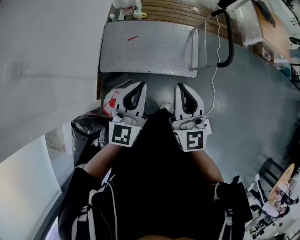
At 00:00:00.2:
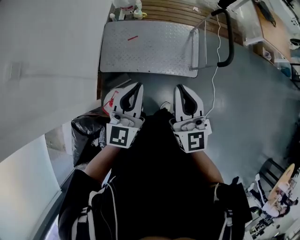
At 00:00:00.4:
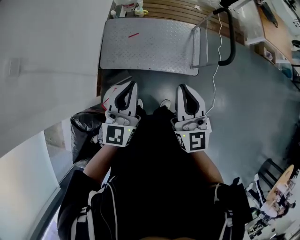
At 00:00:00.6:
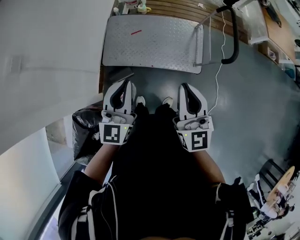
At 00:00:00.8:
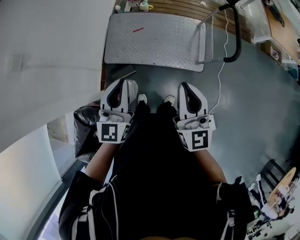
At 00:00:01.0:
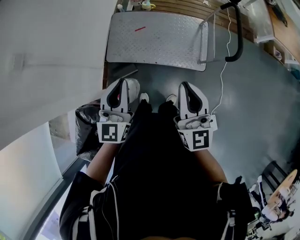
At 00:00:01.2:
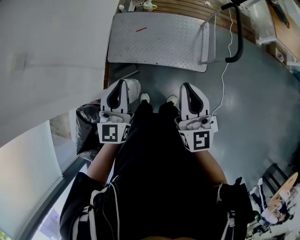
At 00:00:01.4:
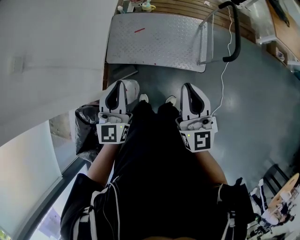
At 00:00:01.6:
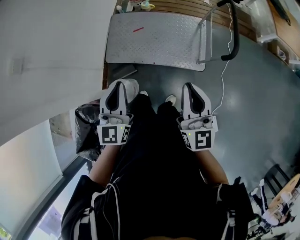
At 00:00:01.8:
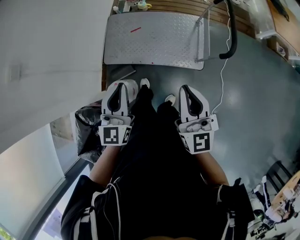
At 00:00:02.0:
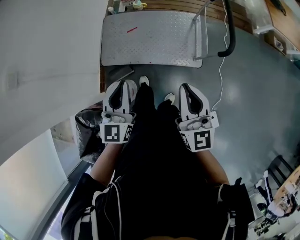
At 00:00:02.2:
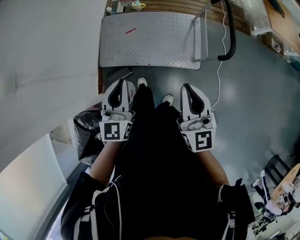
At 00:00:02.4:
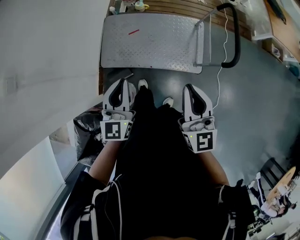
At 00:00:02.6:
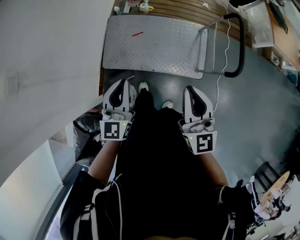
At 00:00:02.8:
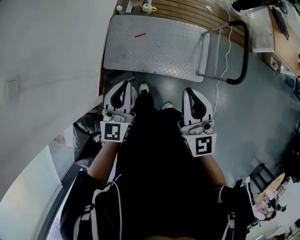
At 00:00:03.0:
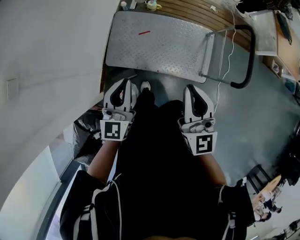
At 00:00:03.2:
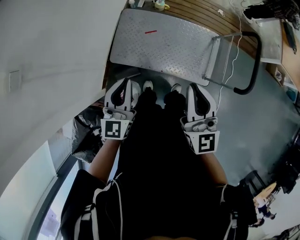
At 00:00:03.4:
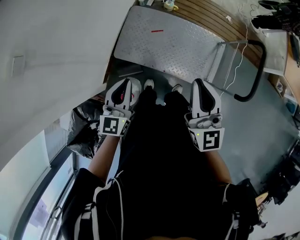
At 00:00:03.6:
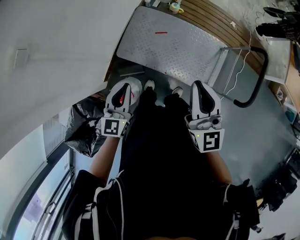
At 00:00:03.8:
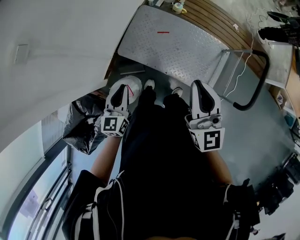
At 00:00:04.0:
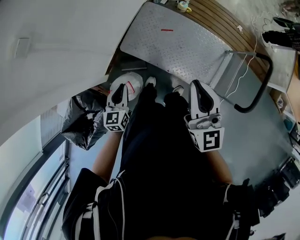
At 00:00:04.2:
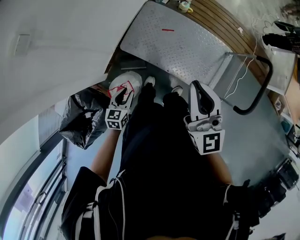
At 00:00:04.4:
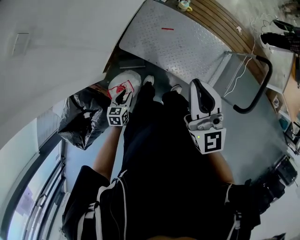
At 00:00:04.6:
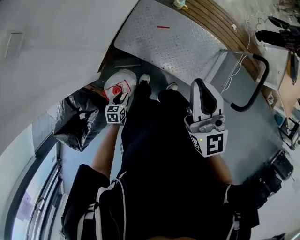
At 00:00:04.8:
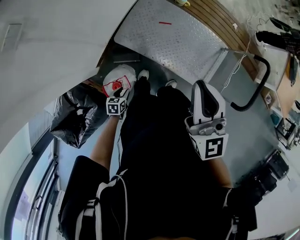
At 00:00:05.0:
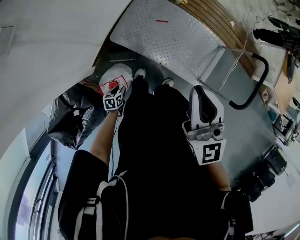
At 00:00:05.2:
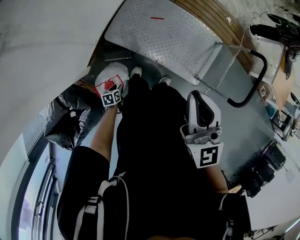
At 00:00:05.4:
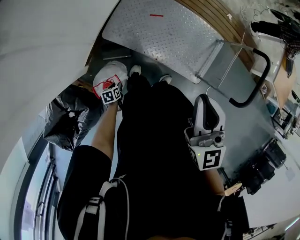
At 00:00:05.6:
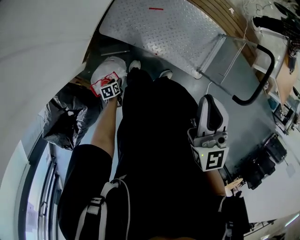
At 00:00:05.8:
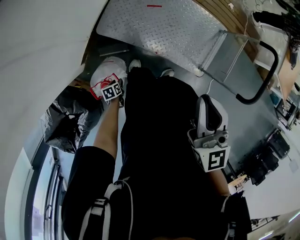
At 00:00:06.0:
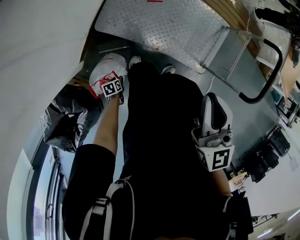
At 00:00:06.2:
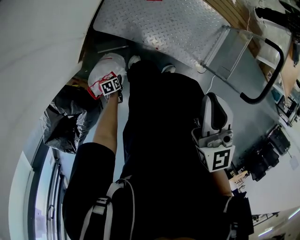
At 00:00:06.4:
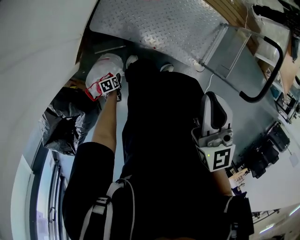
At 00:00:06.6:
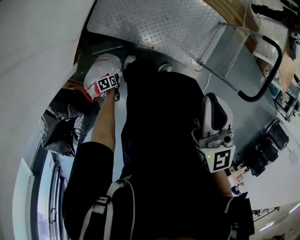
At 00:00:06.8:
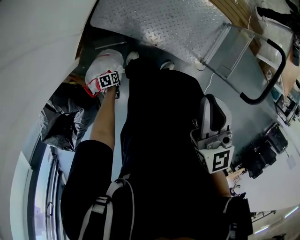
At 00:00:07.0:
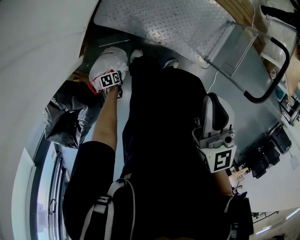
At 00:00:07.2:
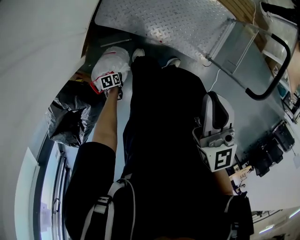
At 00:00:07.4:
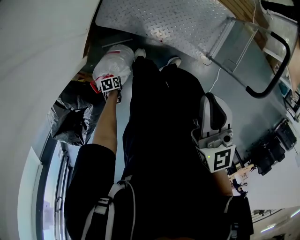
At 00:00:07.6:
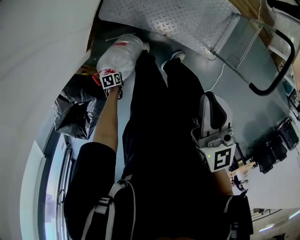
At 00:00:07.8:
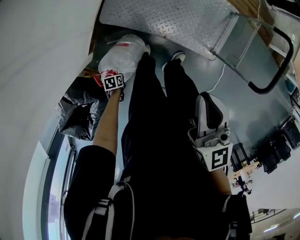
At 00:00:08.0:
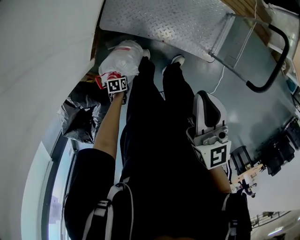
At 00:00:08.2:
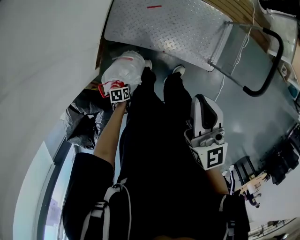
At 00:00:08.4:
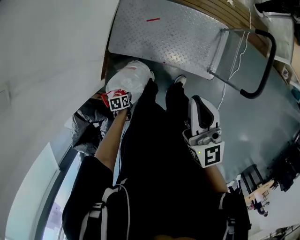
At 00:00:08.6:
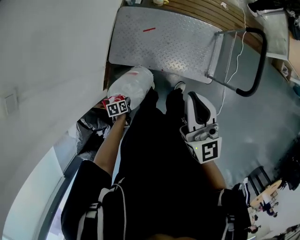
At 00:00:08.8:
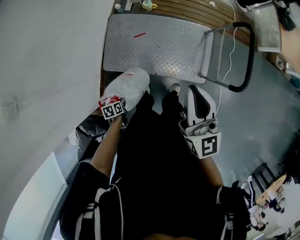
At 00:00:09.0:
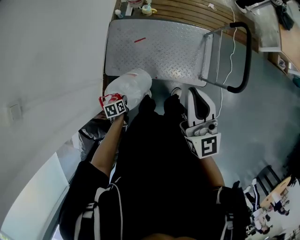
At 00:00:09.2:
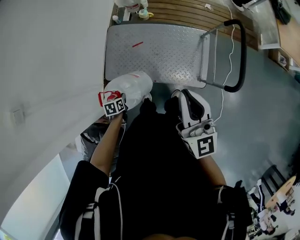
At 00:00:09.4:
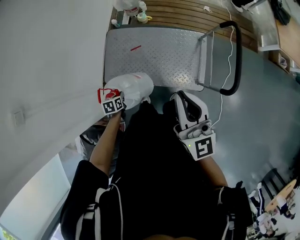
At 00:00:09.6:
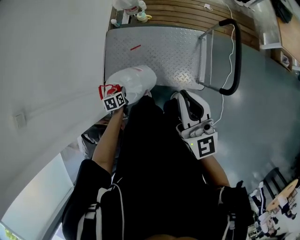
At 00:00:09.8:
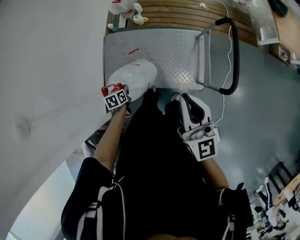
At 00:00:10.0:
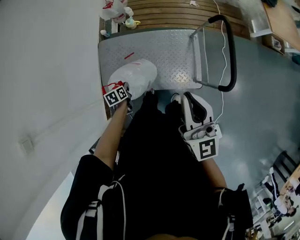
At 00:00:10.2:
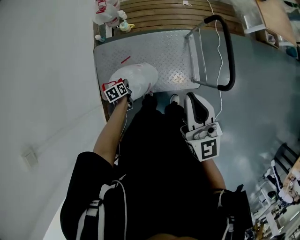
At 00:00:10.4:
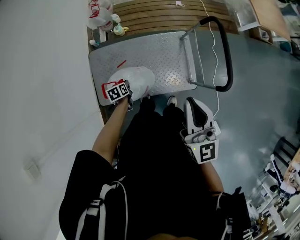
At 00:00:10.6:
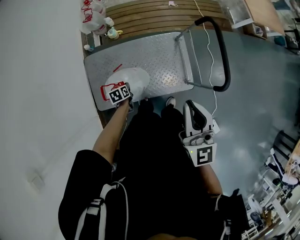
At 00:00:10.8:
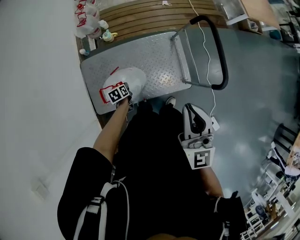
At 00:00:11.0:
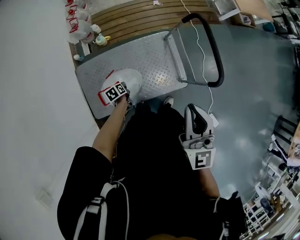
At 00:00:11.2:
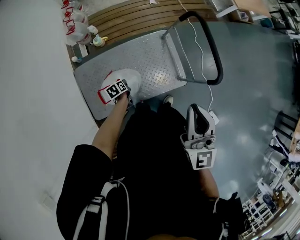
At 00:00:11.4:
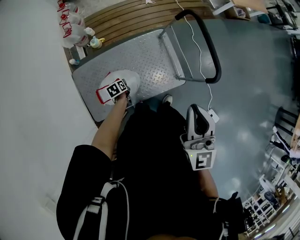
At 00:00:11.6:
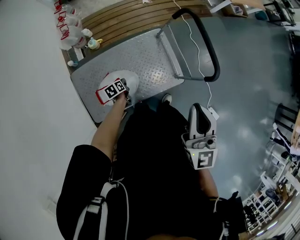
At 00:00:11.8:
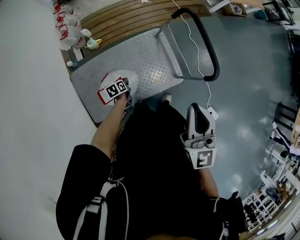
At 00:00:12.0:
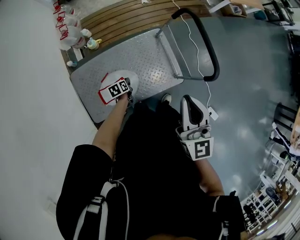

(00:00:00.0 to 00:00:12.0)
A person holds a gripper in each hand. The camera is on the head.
00:00:00.0 - 00:00:01.6: The right gripper goes approximately 10 cm to the right.
00:00:01.6 - 00:00:03.0: The grippers both shift forward and to the left by approximately 20 cm.
00:00:03.0 - 00:00:04.4: The right gripper heads to the left and forward, covering approximately 10 cm, and turns by roughly 20 degrees, while the left gripper shifts roughly 30 cm downward and backward, tips its fingers downward by approximately 40 degrees, and opens.
00:00:04.4 - 00:00:06.0: The right gripper travels downward by roughly 10 cm. The left gripper is displaced downward by roughly 30 cm, and rotates roughly 40 degrees.
00:00:06.0 - 00:00:07.6: The left gripper moves some 5 cm, and closes its fingers.
00:00:07.6 - 00:00:09.0: The right gripper moves to the right, upward and forward, about 20 cm, and turns by some 30 degrees. Meanwhile the left gripper heads upward and forward, covering roughly 30 cm, and turns by some 20 degrees.
00:00:09.0 - 00:00:10.4: The right gripper travels forward and to the right by approximately 10 cm; the left gripper is displaced forward by about 30 cm.
00:00:10.4 - 00:00:12.0: The left gripper moves forward, to the right and downward, approximately 15 cm.

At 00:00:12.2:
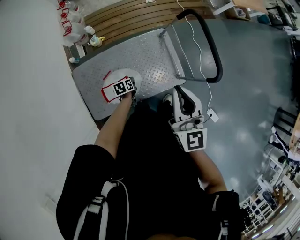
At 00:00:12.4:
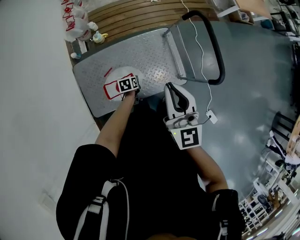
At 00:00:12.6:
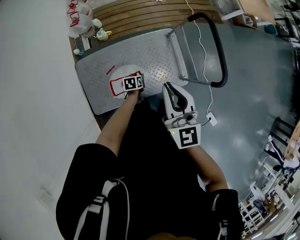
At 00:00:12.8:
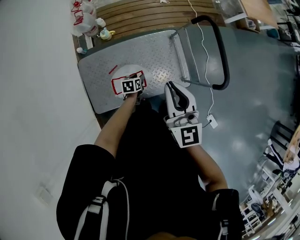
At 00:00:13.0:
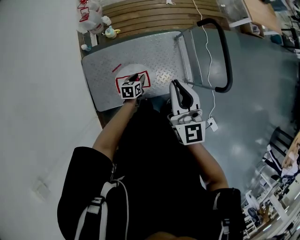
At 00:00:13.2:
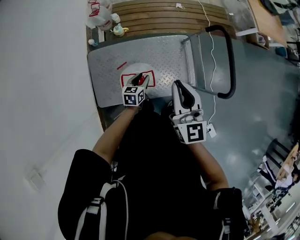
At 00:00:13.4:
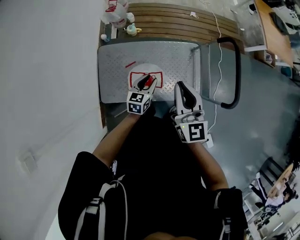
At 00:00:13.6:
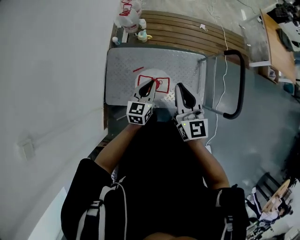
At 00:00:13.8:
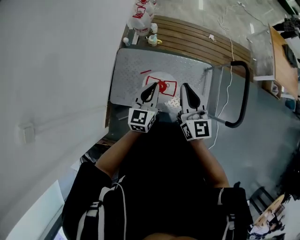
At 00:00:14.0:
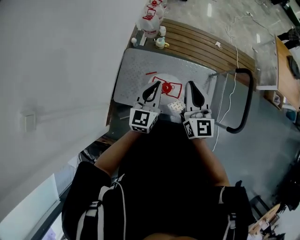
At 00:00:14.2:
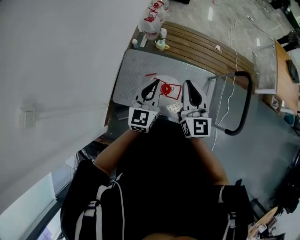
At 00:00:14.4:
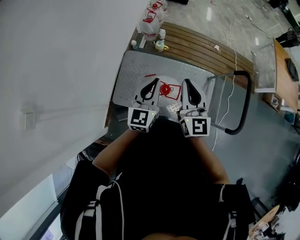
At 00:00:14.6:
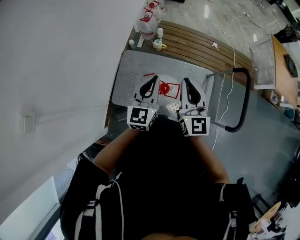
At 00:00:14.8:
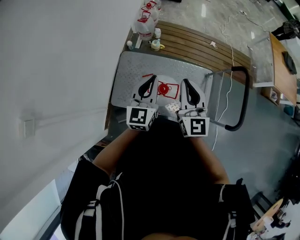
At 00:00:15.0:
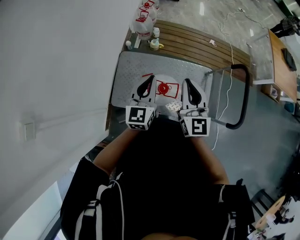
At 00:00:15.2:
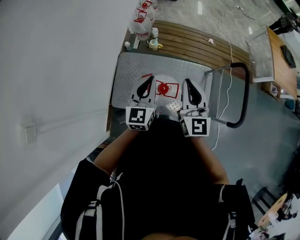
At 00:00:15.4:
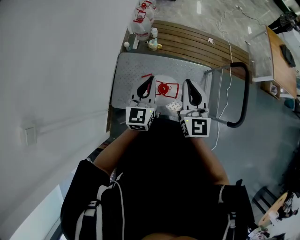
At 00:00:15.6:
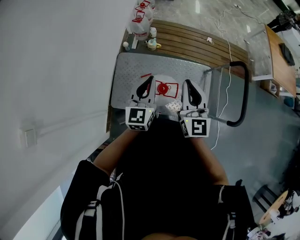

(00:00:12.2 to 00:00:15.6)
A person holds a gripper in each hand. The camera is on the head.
00:00:12.2 - 00:00:13.8: The right gripper changes place by about 15 cm, and changes its angle by roughly 30 degrees; the left gripper moves upward, some 35 cm, angles its fingers upward, by about 40 degrees, and opens, then closes once more.
00:00:13.8 - 00:00:15.6: The left gripper shifts by some 5 cm.

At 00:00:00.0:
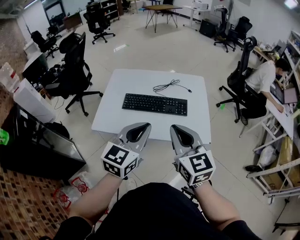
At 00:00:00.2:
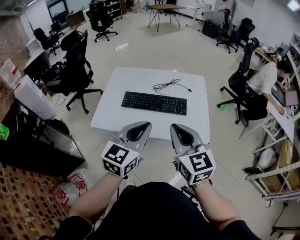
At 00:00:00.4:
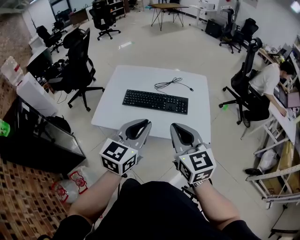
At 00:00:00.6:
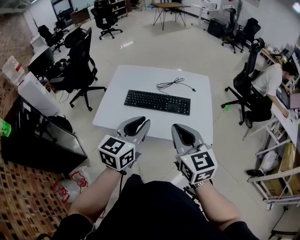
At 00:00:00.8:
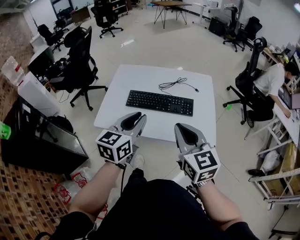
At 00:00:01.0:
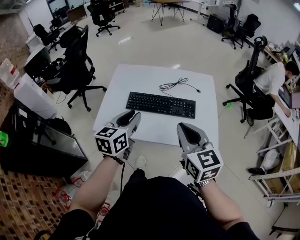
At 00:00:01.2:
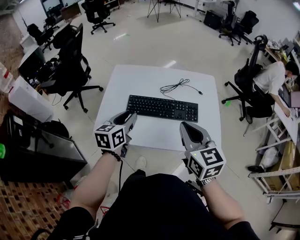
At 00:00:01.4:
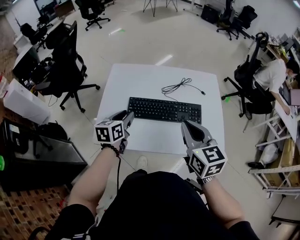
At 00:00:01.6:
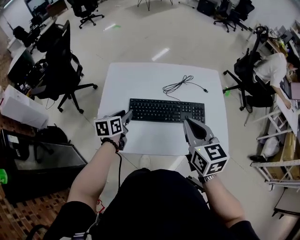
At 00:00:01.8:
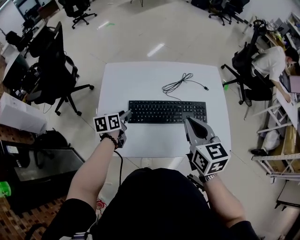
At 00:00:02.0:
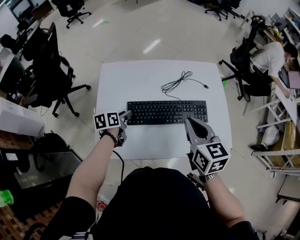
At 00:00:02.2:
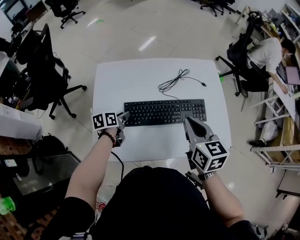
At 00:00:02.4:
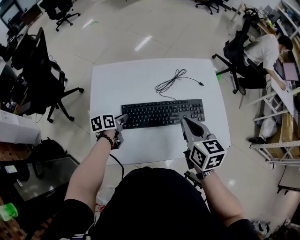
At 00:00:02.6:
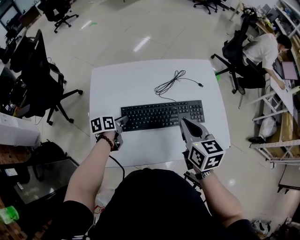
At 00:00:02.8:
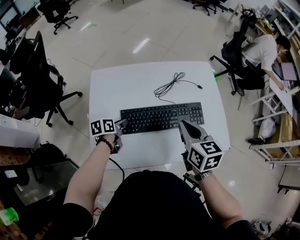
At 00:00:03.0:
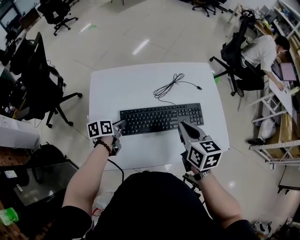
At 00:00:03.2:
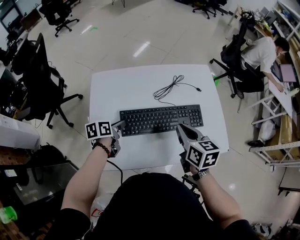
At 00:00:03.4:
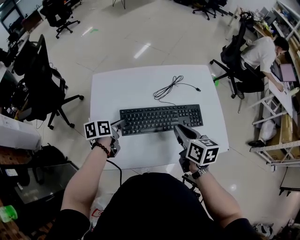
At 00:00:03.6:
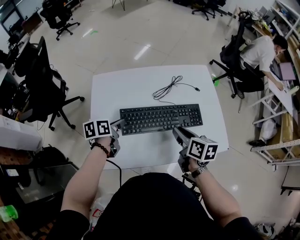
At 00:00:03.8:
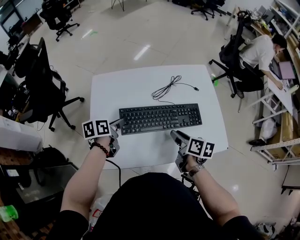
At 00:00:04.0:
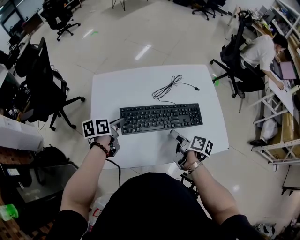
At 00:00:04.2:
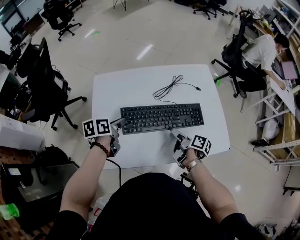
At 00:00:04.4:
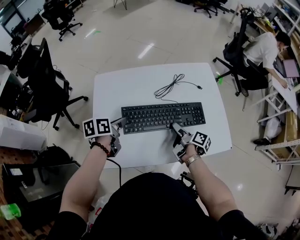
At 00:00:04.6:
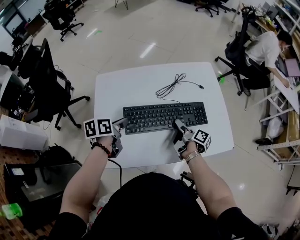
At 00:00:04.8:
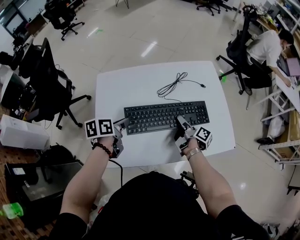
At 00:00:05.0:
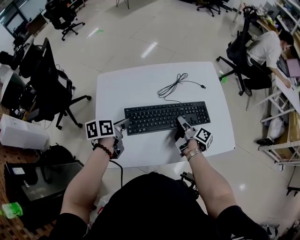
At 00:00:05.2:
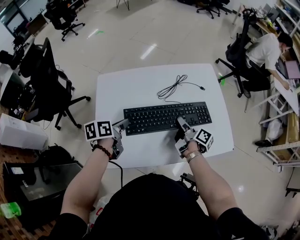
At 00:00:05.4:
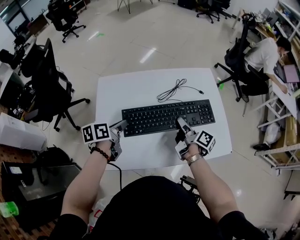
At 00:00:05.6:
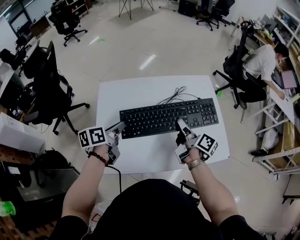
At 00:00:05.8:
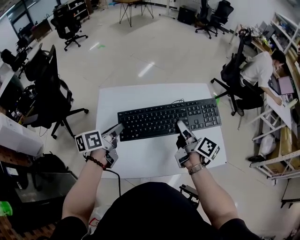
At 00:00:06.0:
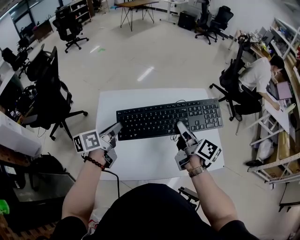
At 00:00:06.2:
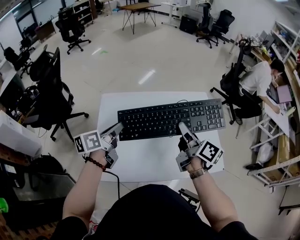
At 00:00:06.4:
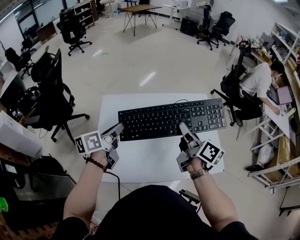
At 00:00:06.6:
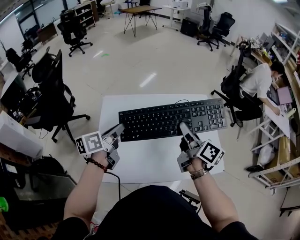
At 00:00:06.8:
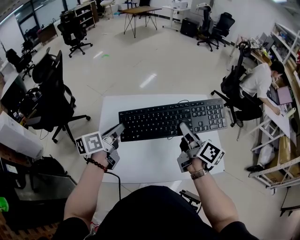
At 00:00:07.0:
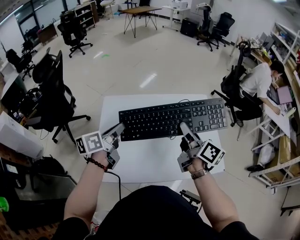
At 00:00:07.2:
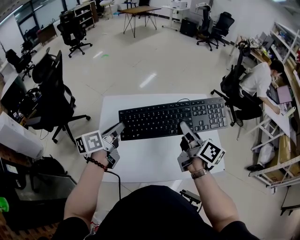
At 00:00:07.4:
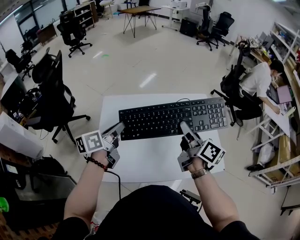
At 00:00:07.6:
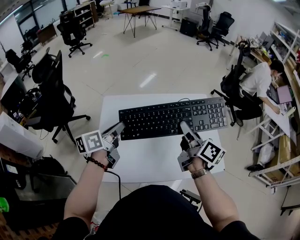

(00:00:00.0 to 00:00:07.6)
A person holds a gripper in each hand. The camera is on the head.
00:00:00.0 - 00:00:01.6: The right gripper is displaced forward and downward by about 20 cm; the left gripper shifts roughly 40 cm forward, downward and to the left, changes its angle by some 40 degrees, and opens.
00:00:01.6 - 00:00:03.0: The right gripper moves downward and forward, roughly 10 cm; the left gripper heads downward, covering some 10 cm, and swivels about 20 degrees.
00:00:03.0 - 00:00:04.6: The left gripper shifts some 10 cm upward; the right gripper travels downward by about 15 cm, rolls clockwise, seen from behind, by about 70 degrees, and opens its fingers.
00:00:04.6 - 00:00:06.0: The right gripper moves upward, about 25 cm, turns by about 30 degrees, and closes its fingers. Meanwhile the left gripper heads upward, covering about 10 cm, and turns by some 20 degrees.
00:00:06.0 - 00:00:07.6: There are only small adjustments of the grippers.
